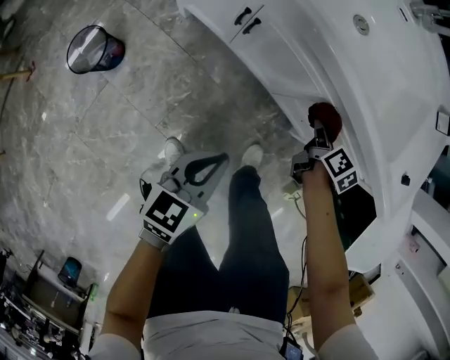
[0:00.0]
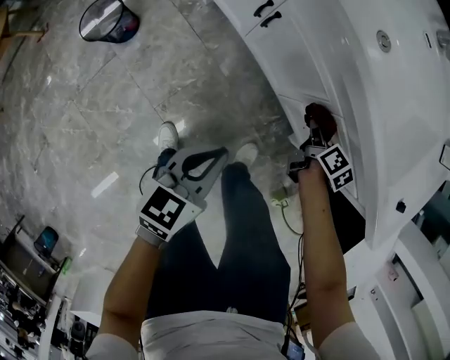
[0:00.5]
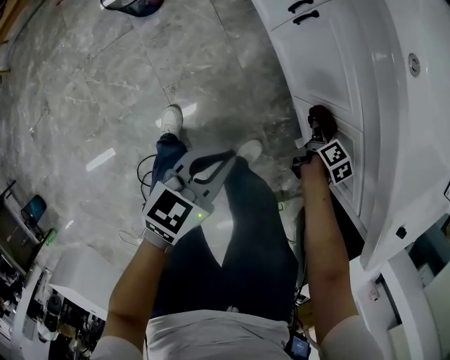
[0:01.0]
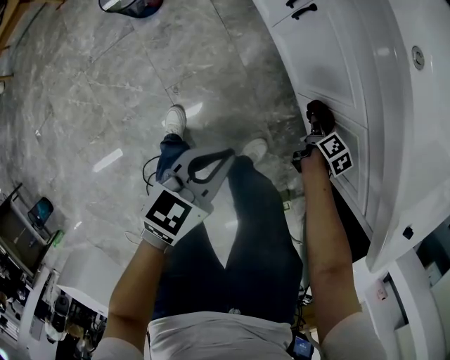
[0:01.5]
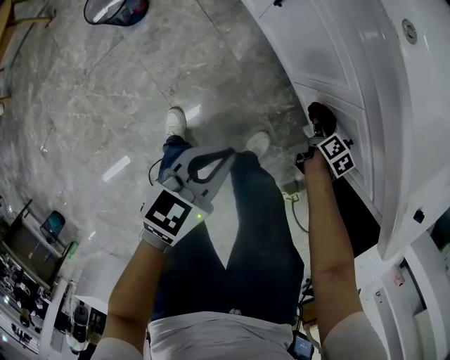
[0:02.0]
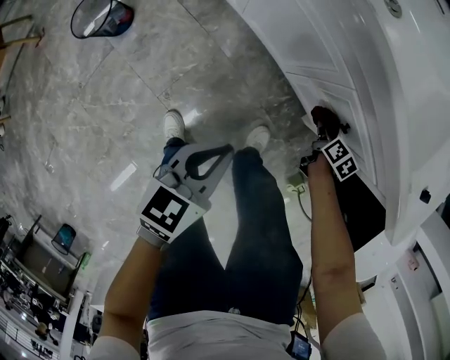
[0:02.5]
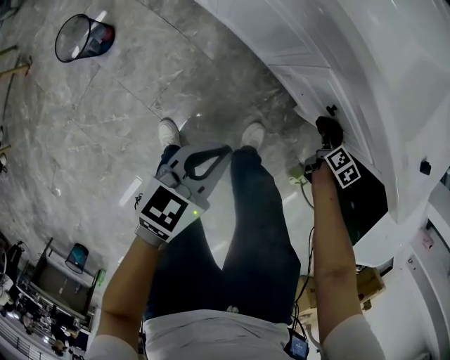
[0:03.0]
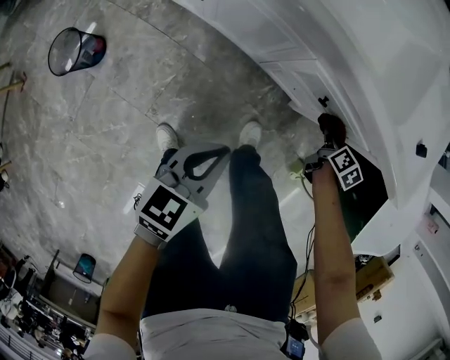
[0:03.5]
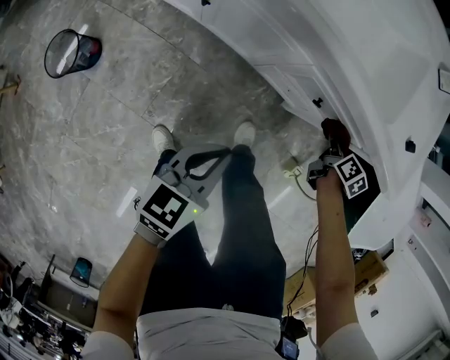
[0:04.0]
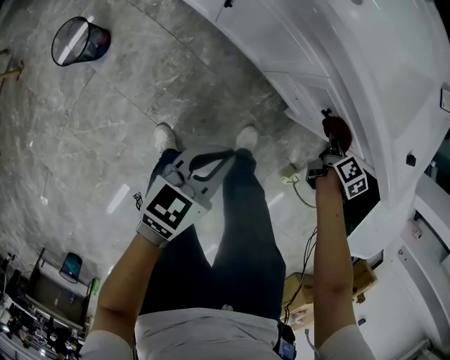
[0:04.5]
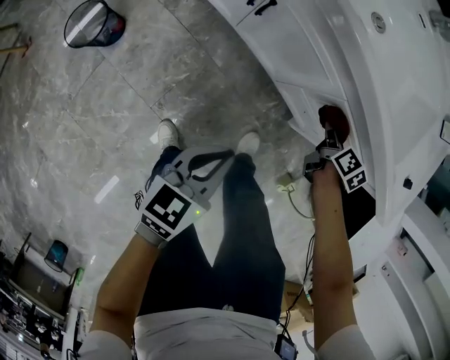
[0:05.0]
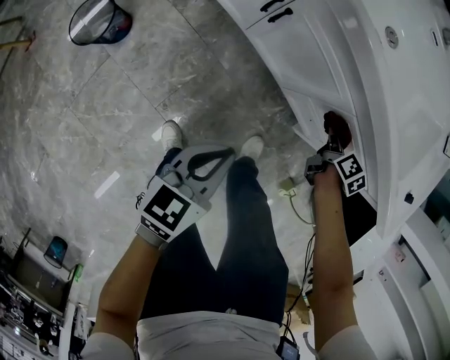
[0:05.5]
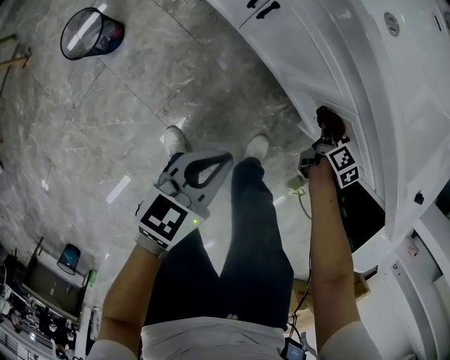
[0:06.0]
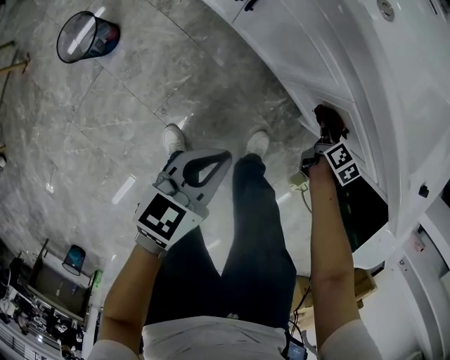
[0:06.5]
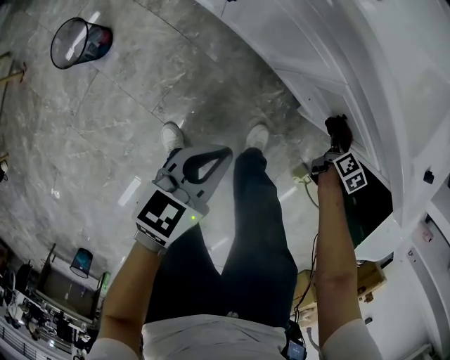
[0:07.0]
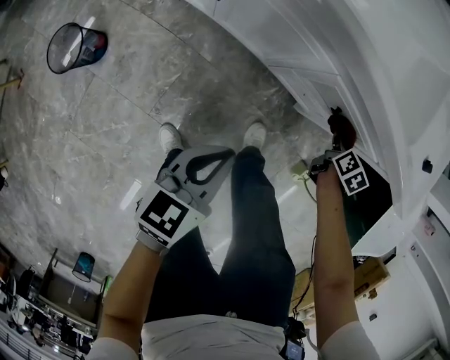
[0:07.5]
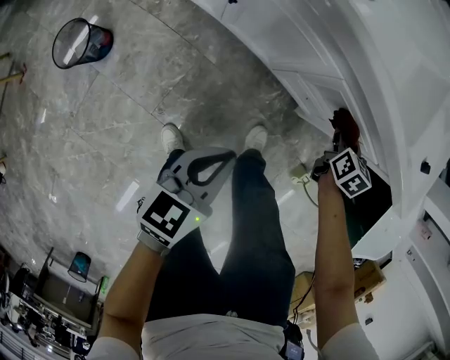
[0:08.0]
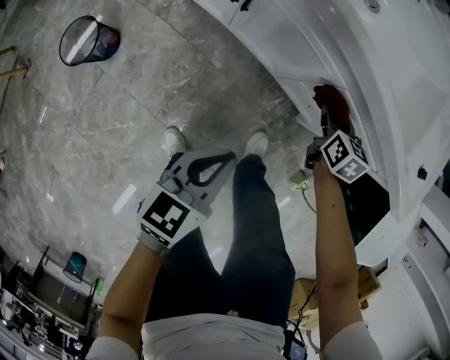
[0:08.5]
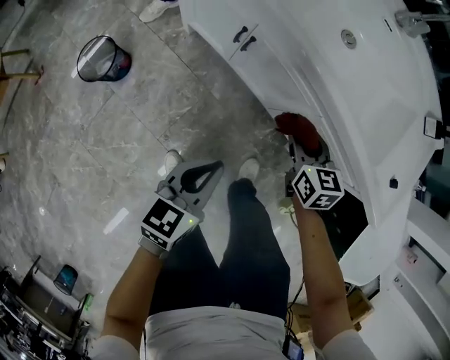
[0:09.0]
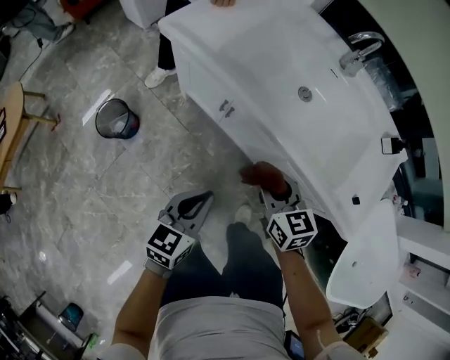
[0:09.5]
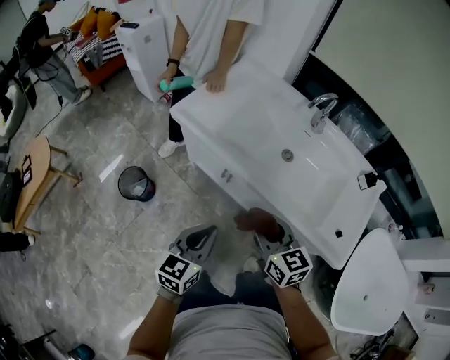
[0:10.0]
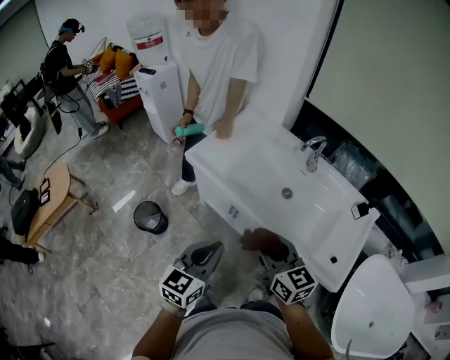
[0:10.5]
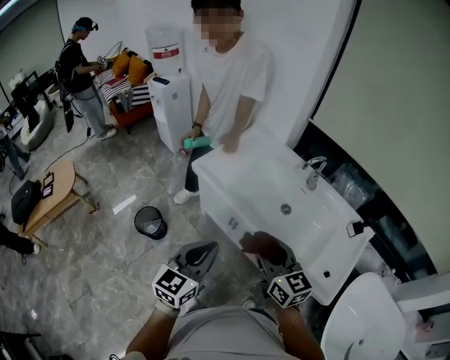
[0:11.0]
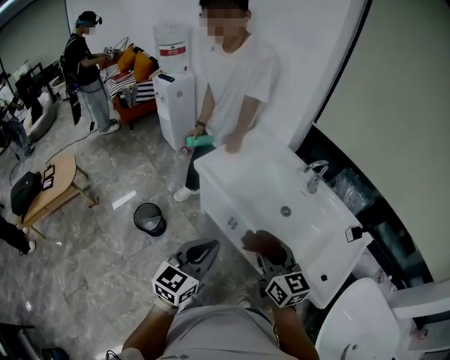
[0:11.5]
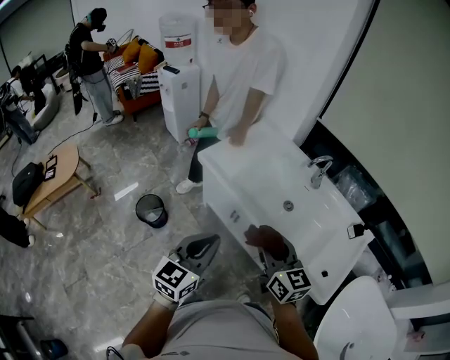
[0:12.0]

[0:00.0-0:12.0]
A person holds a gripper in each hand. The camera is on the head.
0:00.0 to 0:02.0: The right gripper is displaced downward by some 15 cm. Meanwhile the left gripper shifts by some 5 cm.
0:02.0 to 0:04.0: The left gripper changes place by about 5 cm, and rotates roughly 20 degrees. Meanwhile the right gripper is displaced to the right and upward by about 20 cm, and turns by approximately 20 degrees.
0:04.0 to 0:06.0: The right gripper heads to the left and downward, covering some 15 cm; the left gripper shifts roughly 10 cm to the left.
0:06.0 to 0:08.0: The right gripper heads upward and to the right, covering some 10 cm, and swivels roughly 30 degrees, while the left gripper shifts some 5 cm to the right.
0:08.0 to 0:10.0: The grippers both shift upward by approximately 35 cm. The left gripper rotates approximately 20 degrees. Meanwhile the right gripper swivels about 50 degrees.
0:10.0 to 0:12.0: The grippers both shift upward by about 15 cm.

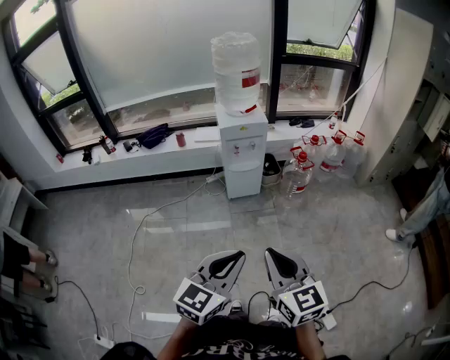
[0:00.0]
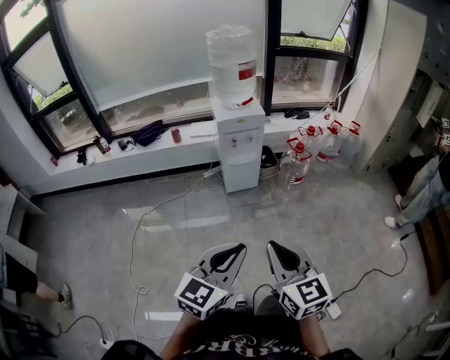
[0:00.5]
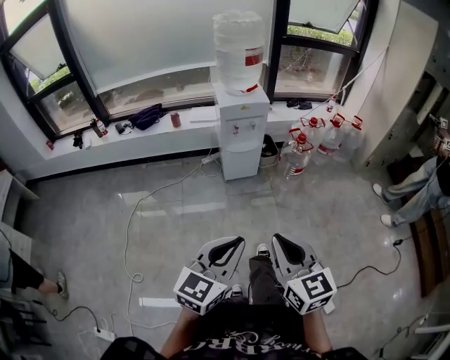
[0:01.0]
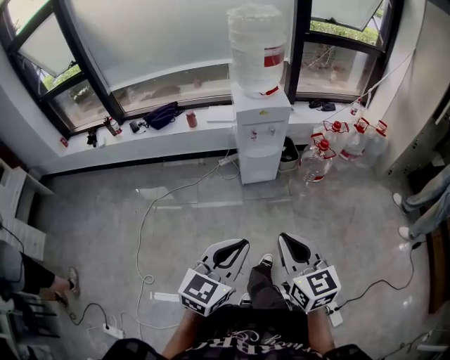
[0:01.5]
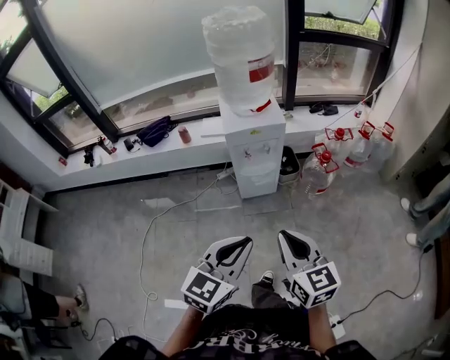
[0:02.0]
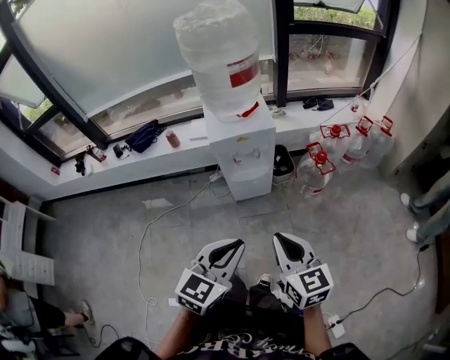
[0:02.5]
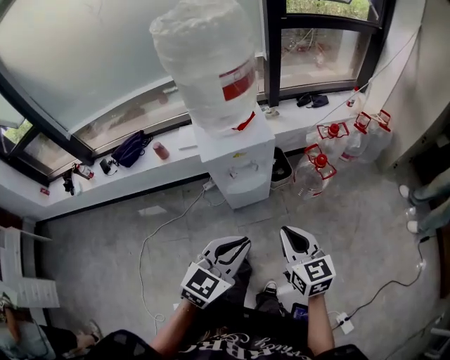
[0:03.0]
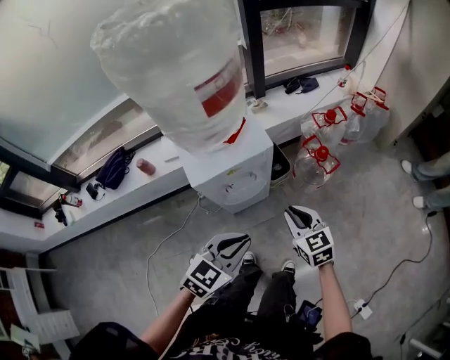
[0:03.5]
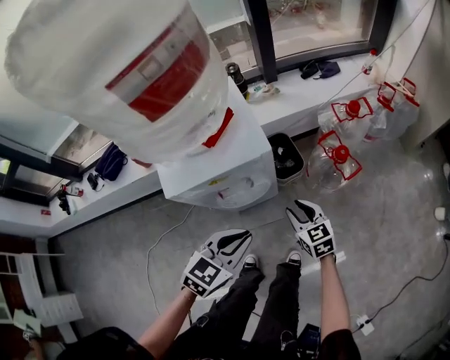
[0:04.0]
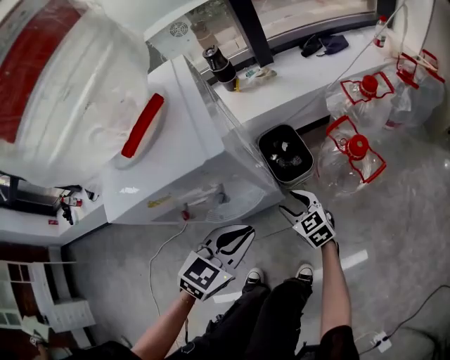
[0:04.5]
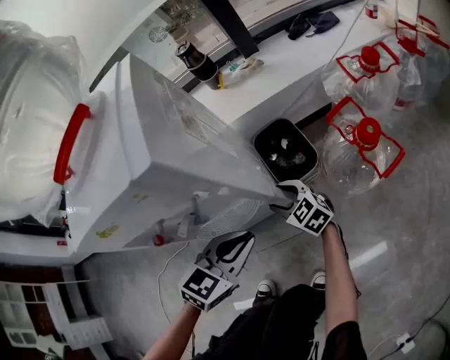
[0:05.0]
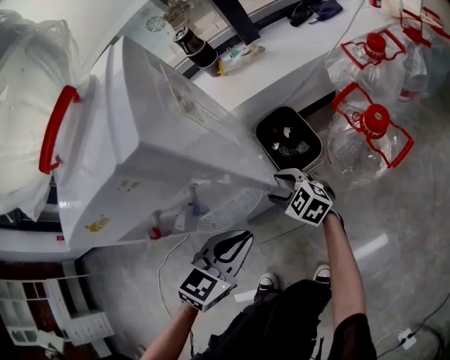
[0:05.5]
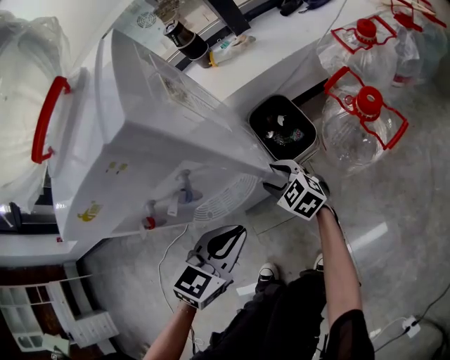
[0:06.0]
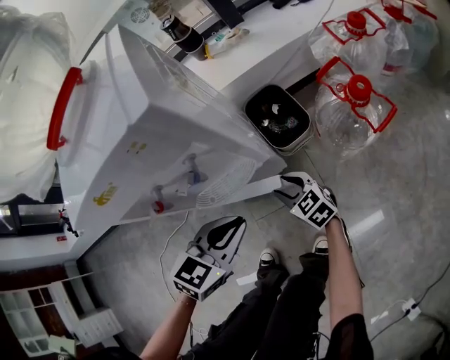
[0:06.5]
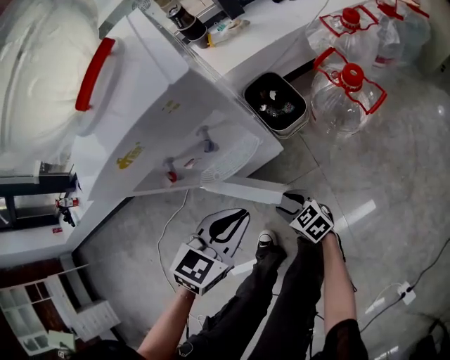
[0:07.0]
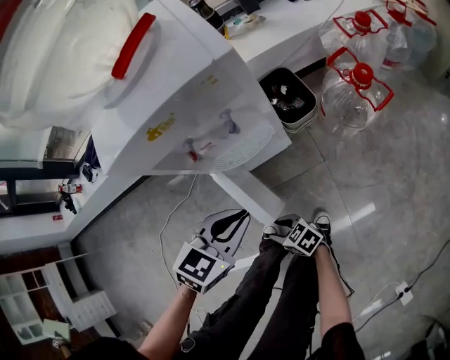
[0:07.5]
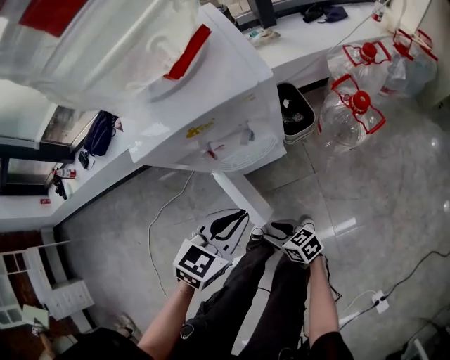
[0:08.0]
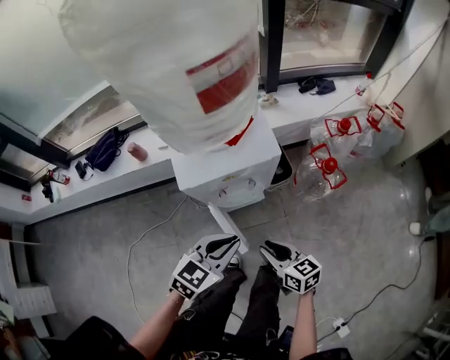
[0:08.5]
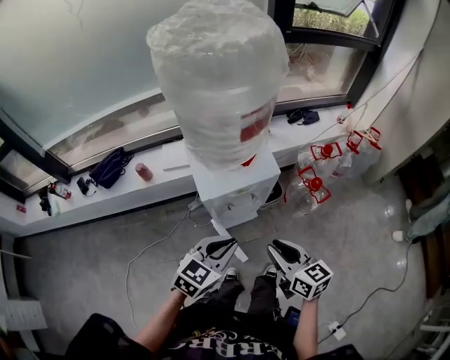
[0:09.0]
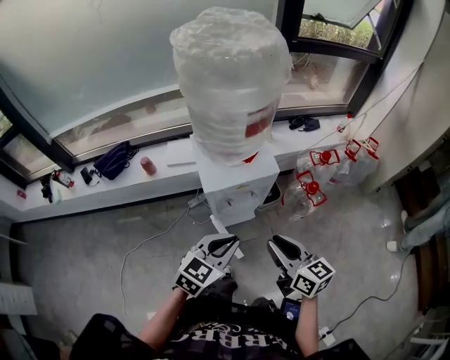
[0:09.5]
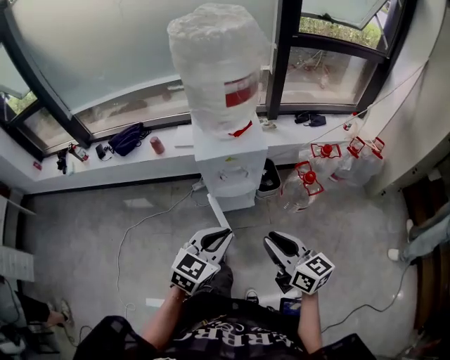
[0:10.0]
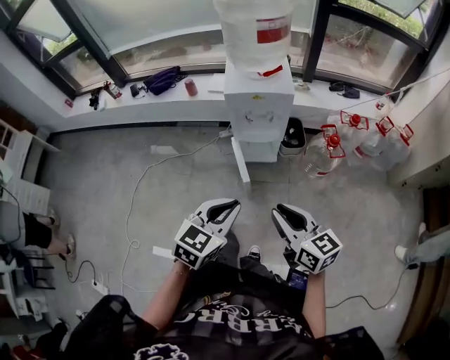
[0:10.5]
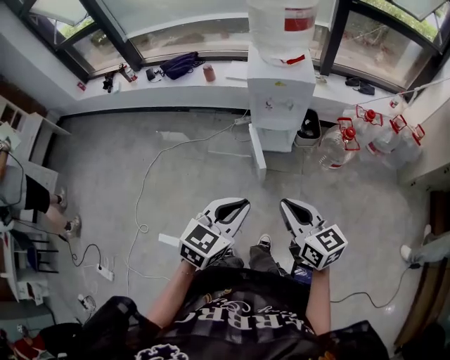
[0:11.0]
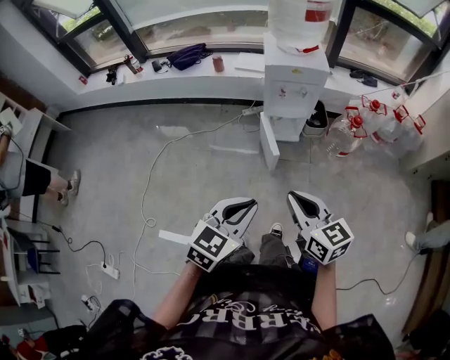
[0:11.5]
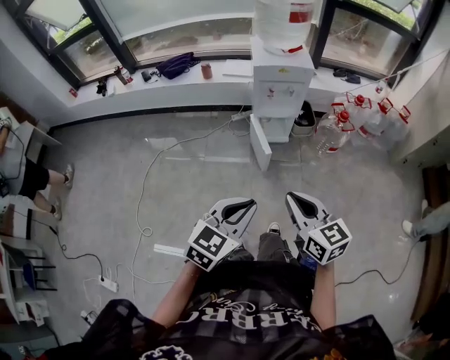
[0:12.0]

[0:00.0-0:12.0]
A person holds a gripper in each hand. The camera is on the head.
0:00.0 to 0:02.0: Both grippers move forward, about 30 cm.
0:02.0 to 0:04.0: The two grippers travel together, forward, about 40 cm. Both grippers move downward, about 35 cm. The left gripper turns by some 30 degrees. The right gripper opens.
0:04.0 to 0:06.0: The left gripper goes about 25 cm downward. The right gripper heads downward and forward, covering about 30 cm, and turns by roughly 20 degrees.
0:06.0 to 0:08.0: The right gripper moves about 35 cm, and swivels some 30 degrees. The left gripper travels upward by some 15 cm.
0:08.0 to 0:10.0: The left gripper goes about 35 cm upward and backward. The right gripper travels upward by some 50 cm, changes its angle by approximately 30 degrees, and closes up.
0:10.0 to 0:12.0: The left gripper goes about 35 cm backward. The right gripper shifts some 30 cm backward and to the left.

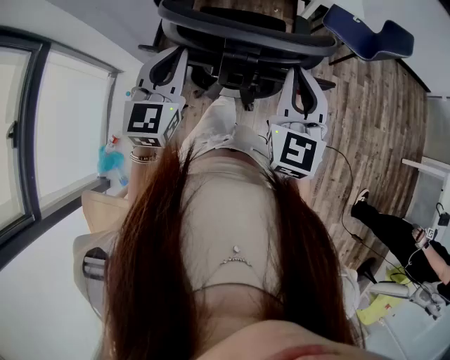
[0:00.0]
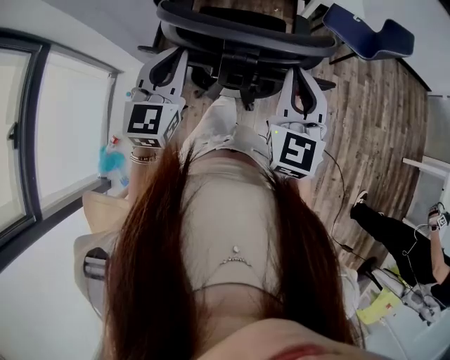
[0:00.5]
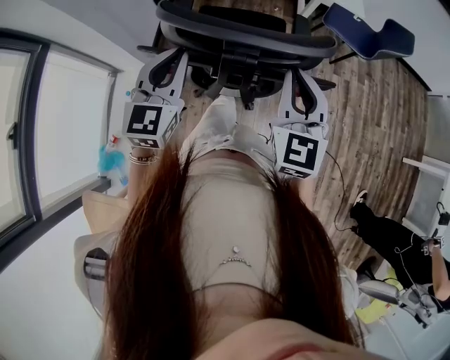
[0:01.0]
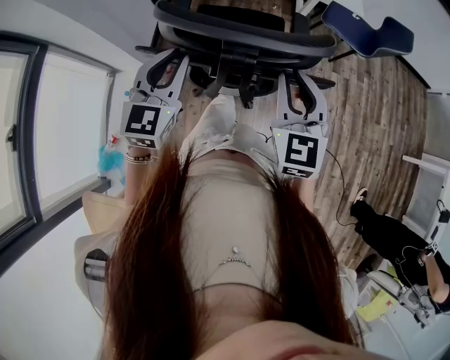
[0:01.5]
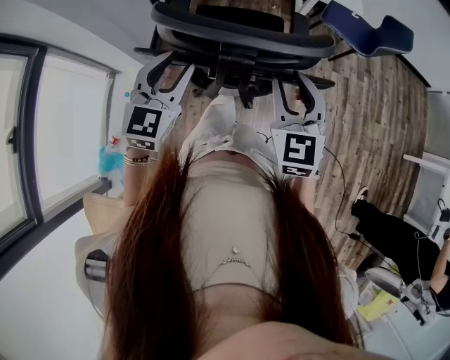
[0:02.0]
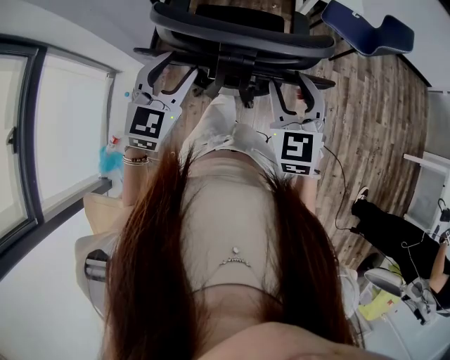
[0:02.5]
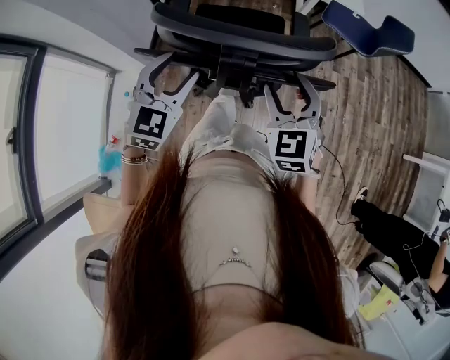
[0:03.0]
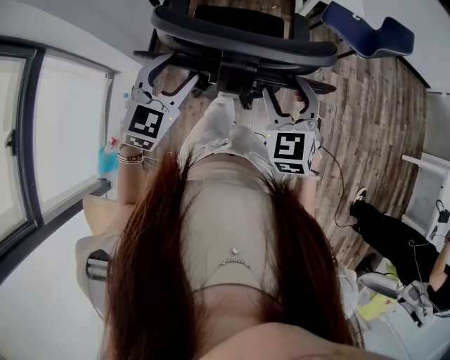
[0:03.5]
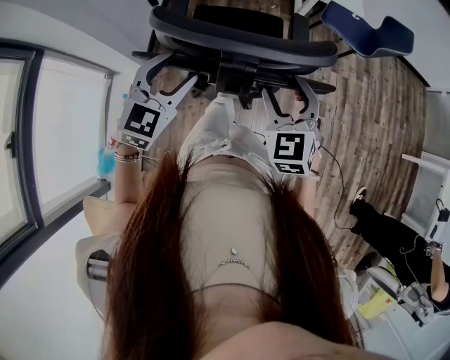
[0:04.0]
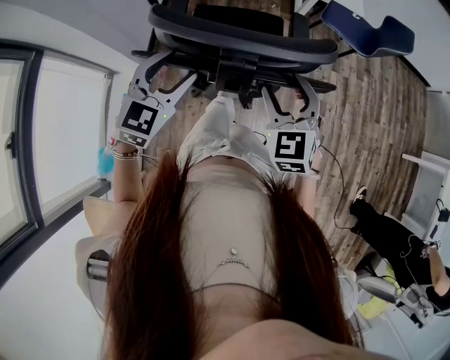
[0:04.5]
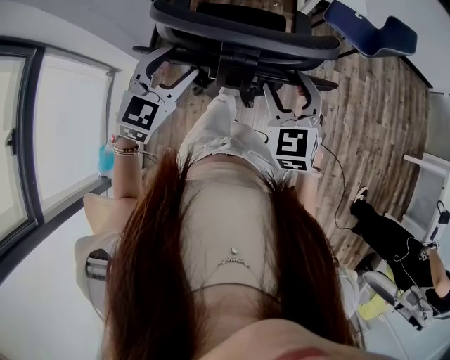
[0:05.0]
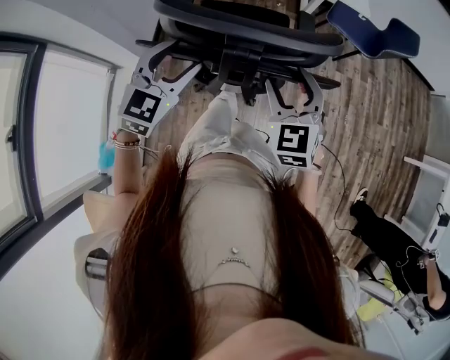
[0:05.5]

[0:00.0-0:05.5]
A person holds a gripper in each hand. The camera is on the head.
0:00.0 to 0:02.0: The right gripper opens its fingers. Meanwhile the left gripper opens its fingers.
0:02.0 to 0:03.5: The right gripper opens up.
0:03.5 to 0:05.5: Both grippers stay put.
